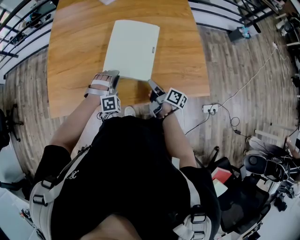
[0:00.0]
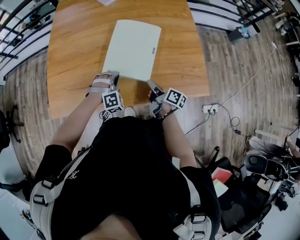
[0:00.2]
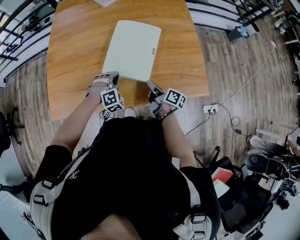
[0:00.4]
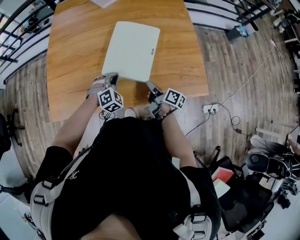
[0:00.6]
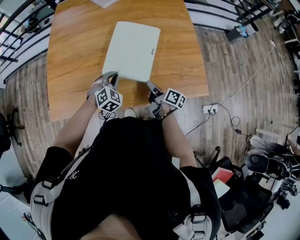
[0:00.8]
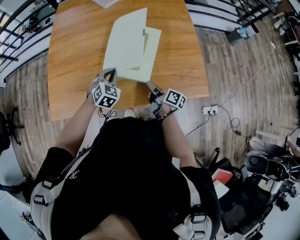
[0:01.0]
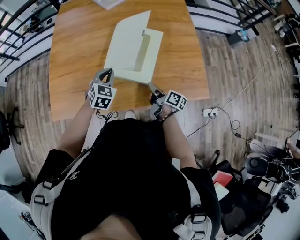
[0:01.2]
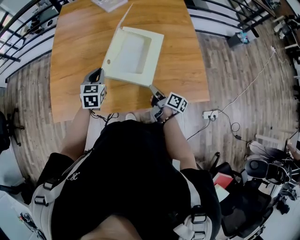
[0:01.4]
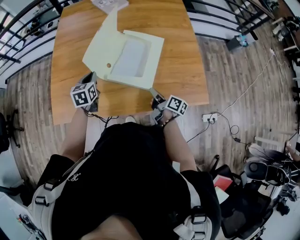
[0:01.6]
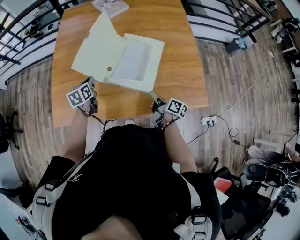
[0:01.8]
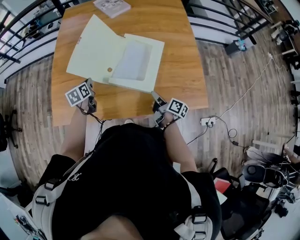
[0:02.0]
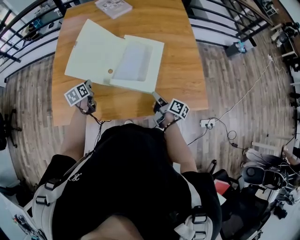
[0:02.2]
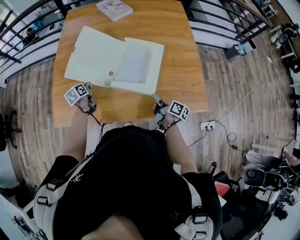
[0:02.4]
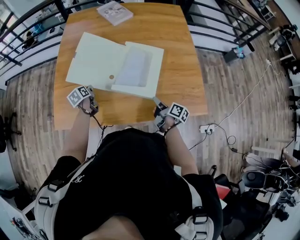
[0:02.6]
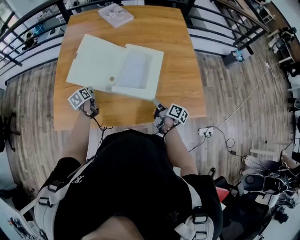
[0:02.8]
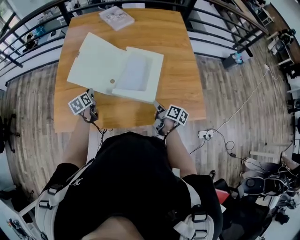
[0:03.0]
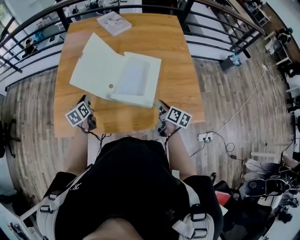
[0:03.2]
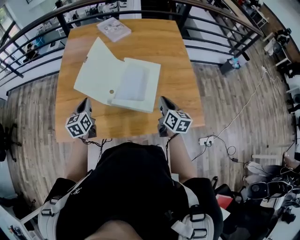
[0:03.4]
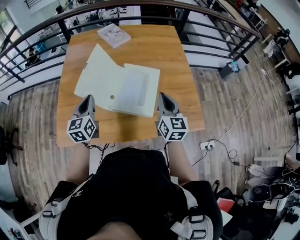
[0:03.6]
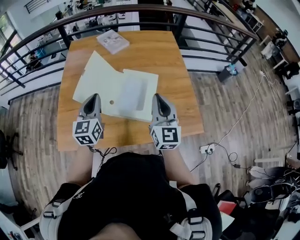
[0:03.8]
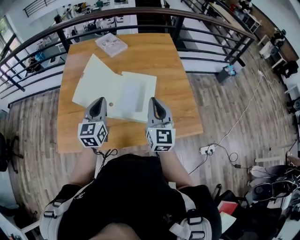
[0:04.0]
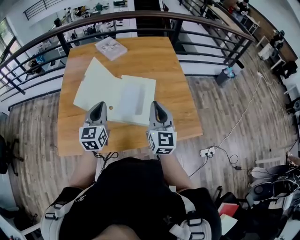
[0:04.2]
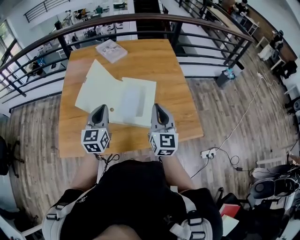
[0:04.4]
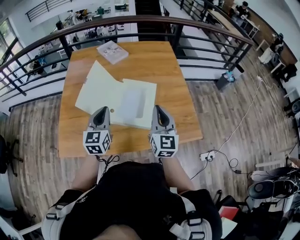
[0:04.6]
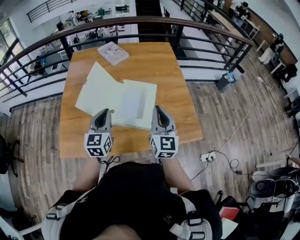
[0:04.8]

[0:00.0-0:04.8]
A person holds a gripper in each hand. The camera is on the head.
0:00.0 to 0:01.6: The left gripper shifts roughly 15 cm to the left, forward and upward, rotates around the line of its fingers by approximately 90 degrees, counterclockwise from behind, and closes up.
0:01.6 to 0:03.2: The left gripper travels to the left by roughly 10 cm, goes downward and returns, roughly 10 cm each way, and changes its angle by approximately 20 degrees, while the right gripper travels upward by approximately 5 cm, and turns by some 20 degrees.
0:03.2 to 0:04.8: The left gripper travels upward and to the right by some 25 cm, and changes its angle by approximately 40 degrees. Meanwhile the right gripper travels upward by roughly 25 cm, and rolls counterclockwise, seen from behind, by approximately 50 degrees.

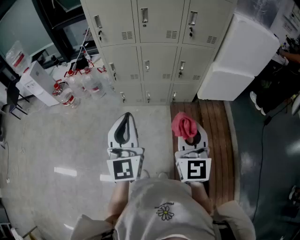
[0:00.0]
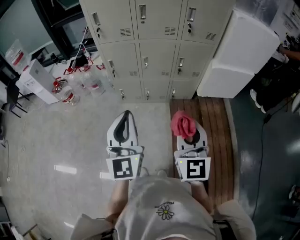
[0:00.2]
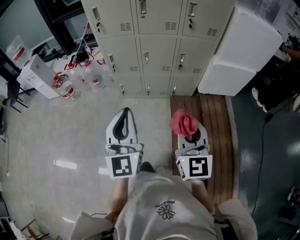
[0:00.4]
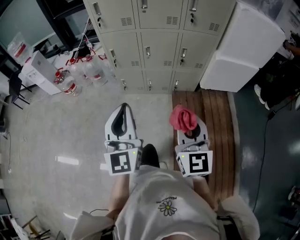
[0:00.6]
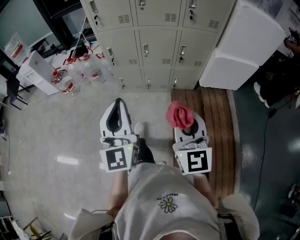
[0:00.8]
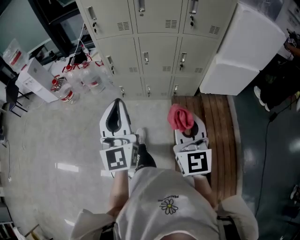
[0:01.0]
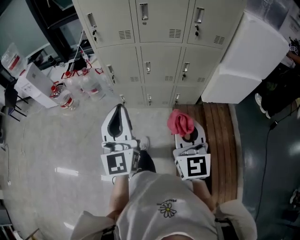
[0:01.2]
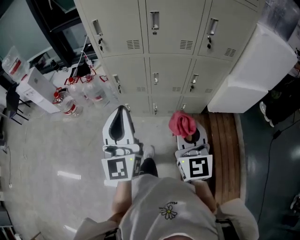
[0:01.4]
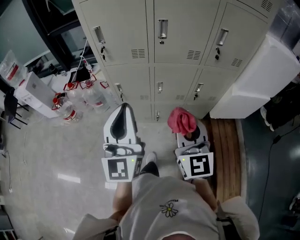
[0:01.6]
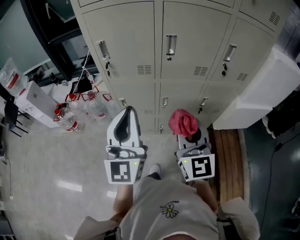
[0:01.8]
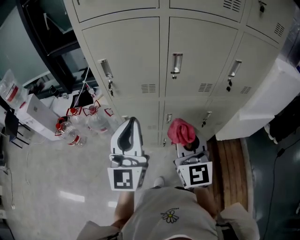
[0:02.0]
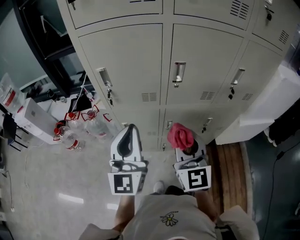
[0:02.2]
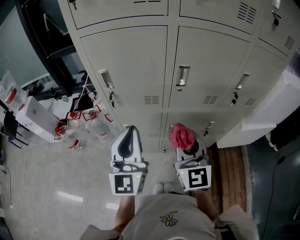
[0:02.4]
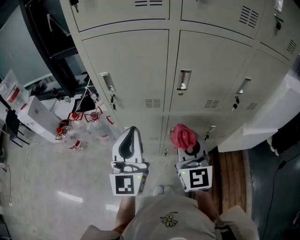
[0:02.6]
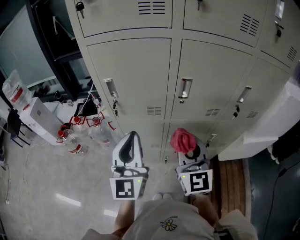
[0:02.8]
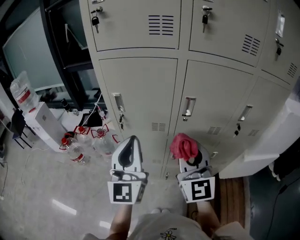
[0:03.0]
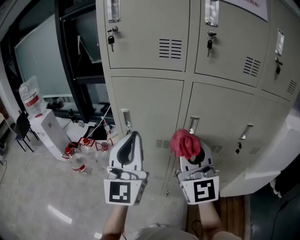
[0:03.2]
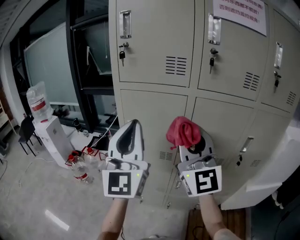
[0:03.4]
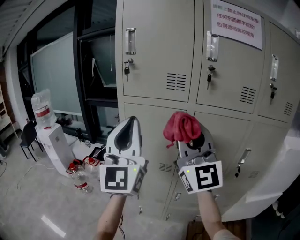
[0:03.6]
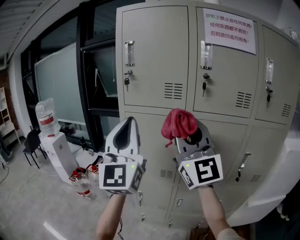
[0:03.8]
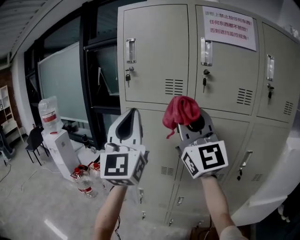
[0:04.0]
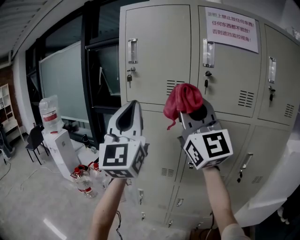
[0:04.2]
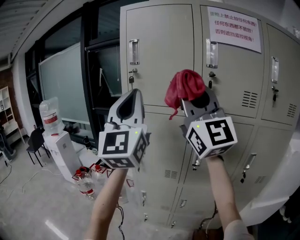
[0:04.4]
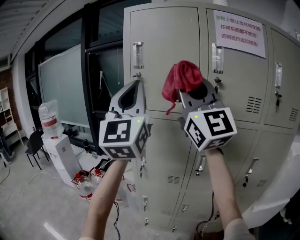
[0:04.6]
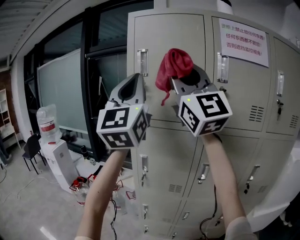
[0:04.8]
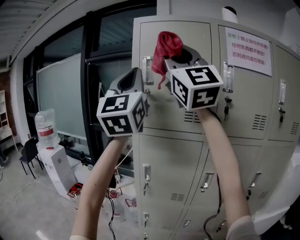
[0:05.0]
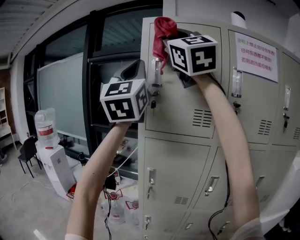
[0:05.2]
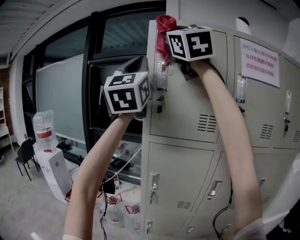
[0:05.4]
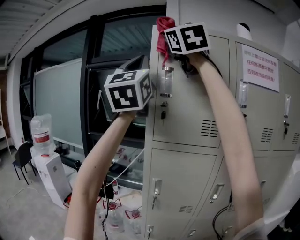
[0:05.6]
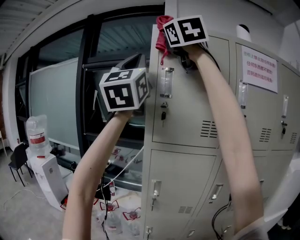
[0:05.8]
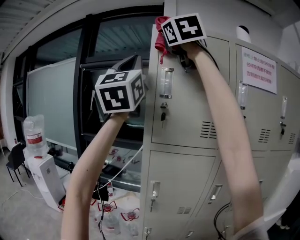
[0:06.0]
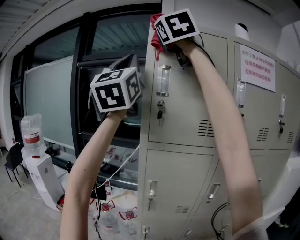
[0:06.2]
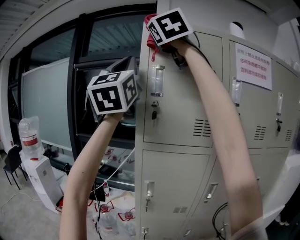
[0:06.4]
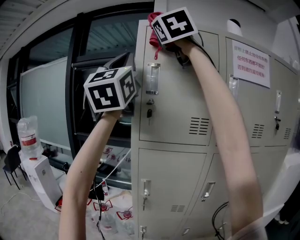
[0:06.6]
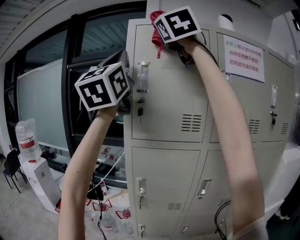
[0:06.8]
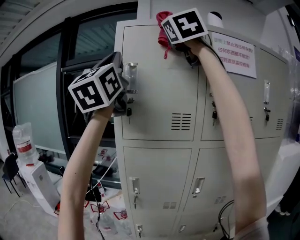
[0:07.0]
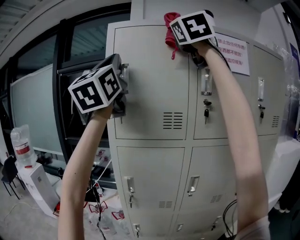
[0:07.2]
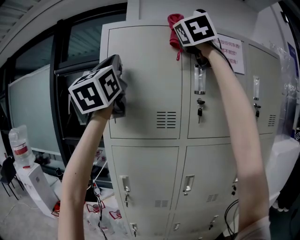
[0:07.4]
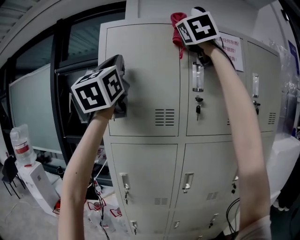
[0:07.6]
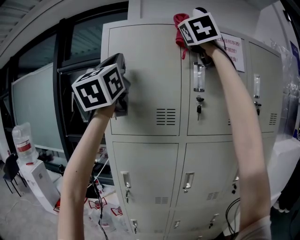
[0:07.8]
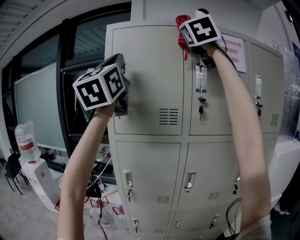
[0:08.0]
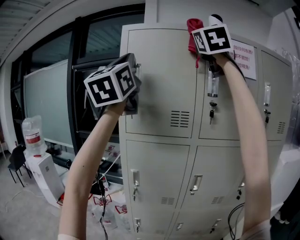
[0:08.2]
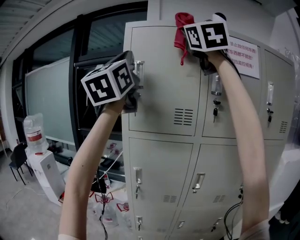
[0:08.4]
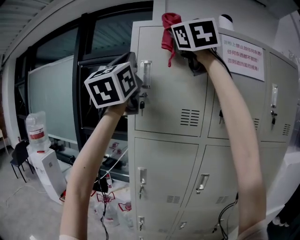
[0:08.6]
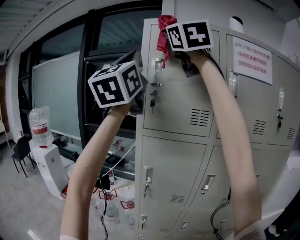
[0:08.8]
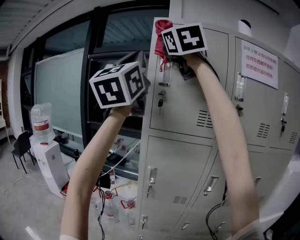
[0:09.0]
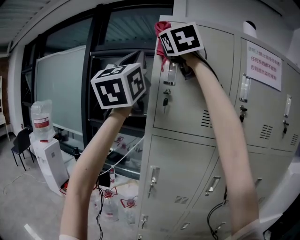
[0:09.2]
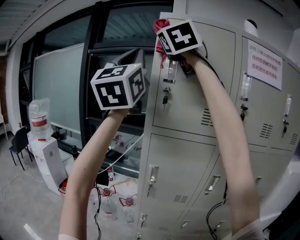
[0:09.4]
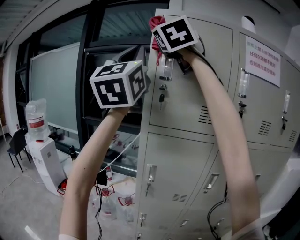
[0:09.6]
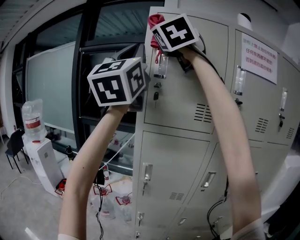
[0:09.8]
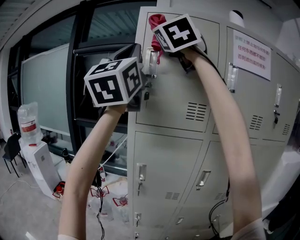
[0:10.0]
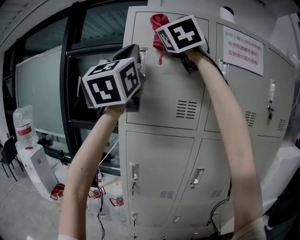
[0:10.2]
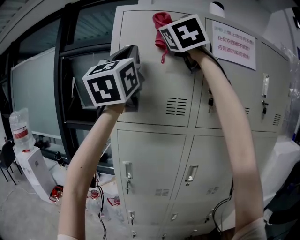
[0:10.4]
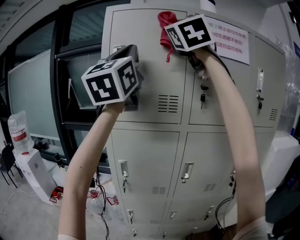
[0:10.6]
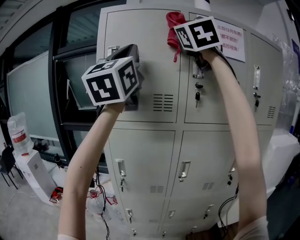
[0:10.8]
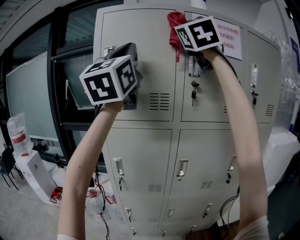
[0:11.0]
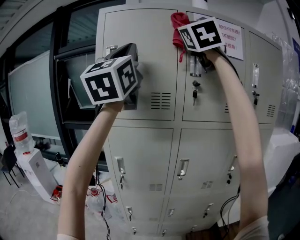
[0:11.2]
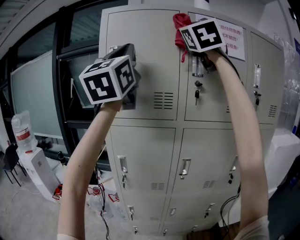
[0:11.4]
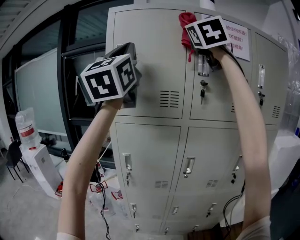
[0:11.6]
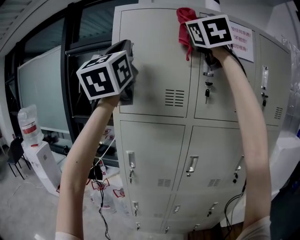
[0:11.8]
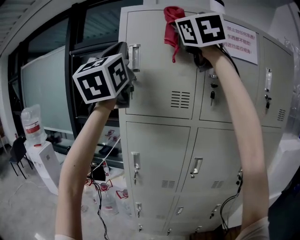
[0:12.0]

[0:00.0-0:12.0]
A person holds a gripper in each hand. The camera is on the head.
0:00.0 to 0:01.6: The two grippers go about 25 cm forward.
0:01.6 to 0:03.0: The right gripper moves forward and upward, approximately 25 cm. The left gripper is displaced forward by about 20 cm.
0:03.0 to 0:04.4: The grippers both shift upward by approximately 30 cm. The left gripper turns by about 20 degrees; the right gripper swivels approximately 40 degrees.
0:04.4 to 0:06.0: The grippers both shift upward, forward and to the left by roughly 35 cm. The right gripper swivels about 30 degrees.
0:06.0 to 0:07.6: The right gripper travels to the right by some 25 cm, while the left gripper goes some 10 cm to the right.
0:07.6 to 0:09.0: The right gripper travels to the left by roughly 25 cm, and swivels roughly 30 degrees. Meanwhile the left gripper is displaced to the left by some 10 cm.
0:09.0 to 0:10.4: Both grippers travel together to the right, roughly 10 cm.
0:10.4 to 0:12.0: The left gripper changes place by about 5 cm. The right gripper goes approximately 5 cm backward, and goes to the right and returns, some 10 cm each way.

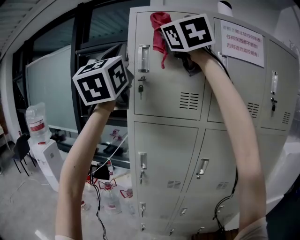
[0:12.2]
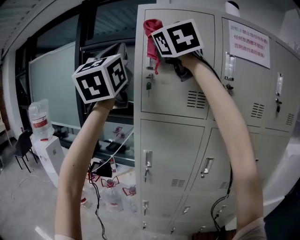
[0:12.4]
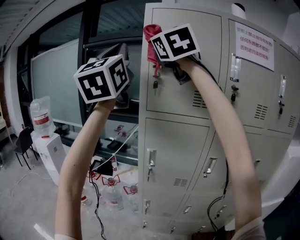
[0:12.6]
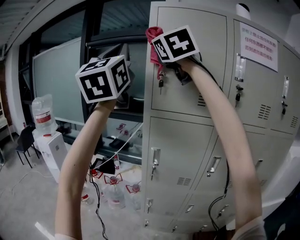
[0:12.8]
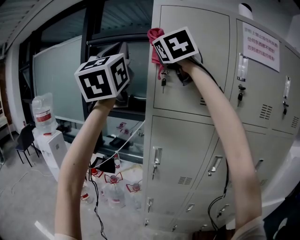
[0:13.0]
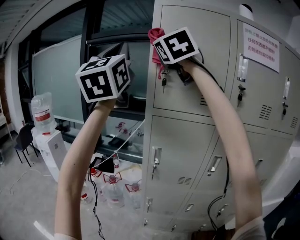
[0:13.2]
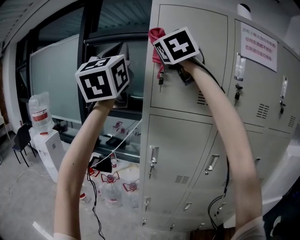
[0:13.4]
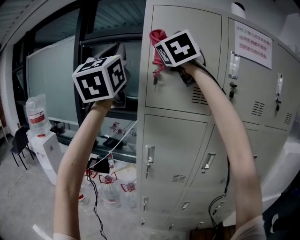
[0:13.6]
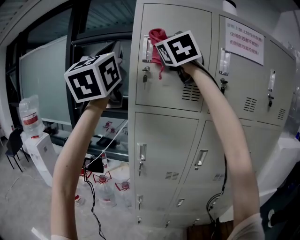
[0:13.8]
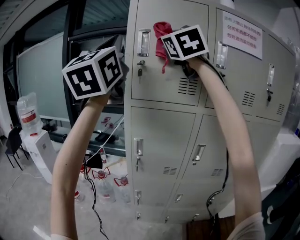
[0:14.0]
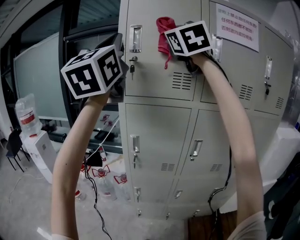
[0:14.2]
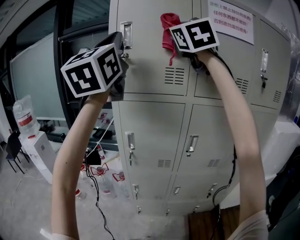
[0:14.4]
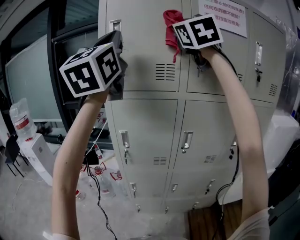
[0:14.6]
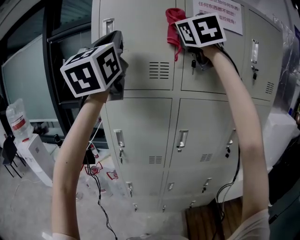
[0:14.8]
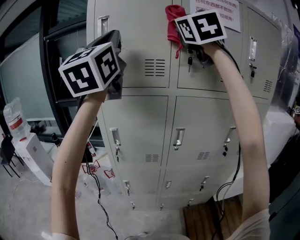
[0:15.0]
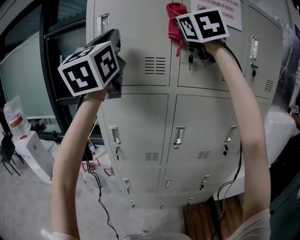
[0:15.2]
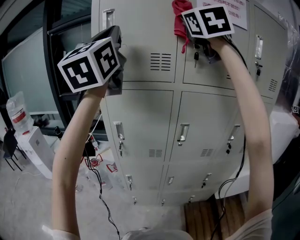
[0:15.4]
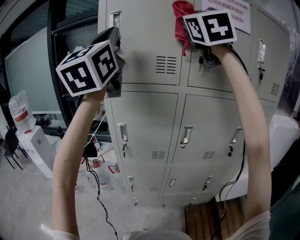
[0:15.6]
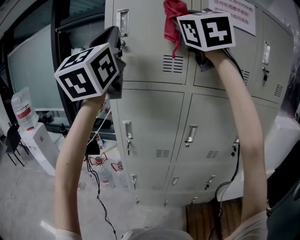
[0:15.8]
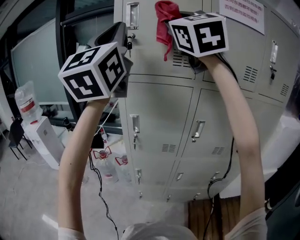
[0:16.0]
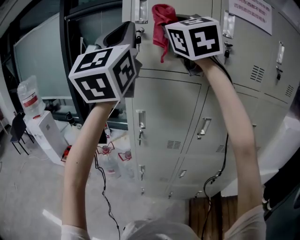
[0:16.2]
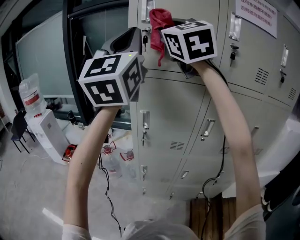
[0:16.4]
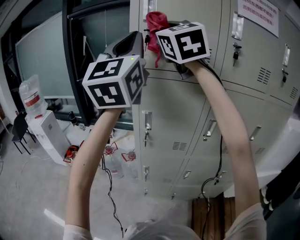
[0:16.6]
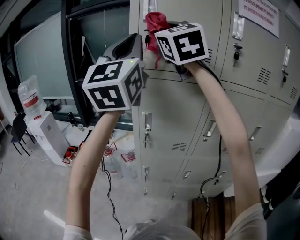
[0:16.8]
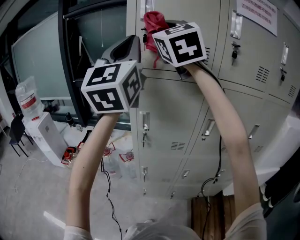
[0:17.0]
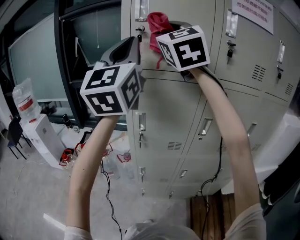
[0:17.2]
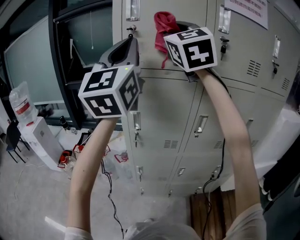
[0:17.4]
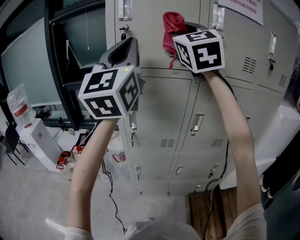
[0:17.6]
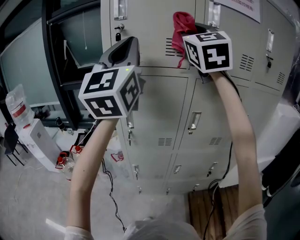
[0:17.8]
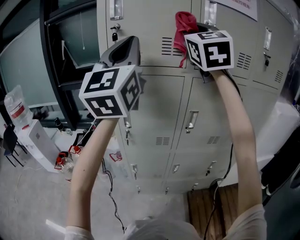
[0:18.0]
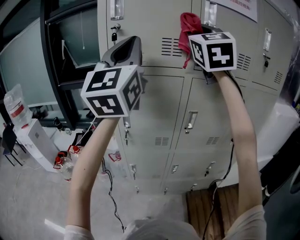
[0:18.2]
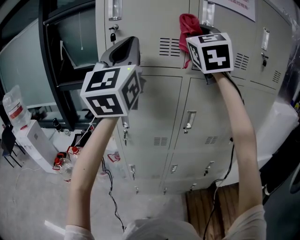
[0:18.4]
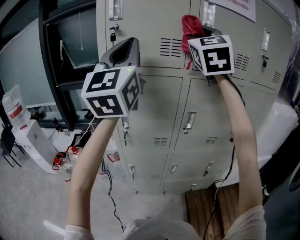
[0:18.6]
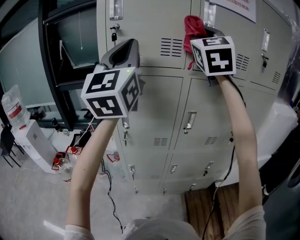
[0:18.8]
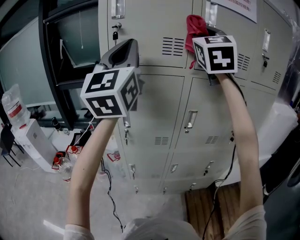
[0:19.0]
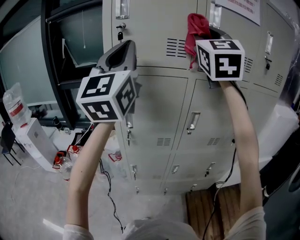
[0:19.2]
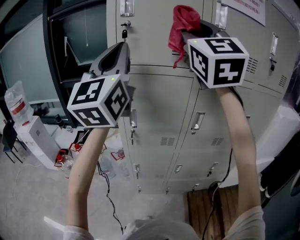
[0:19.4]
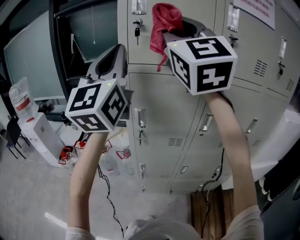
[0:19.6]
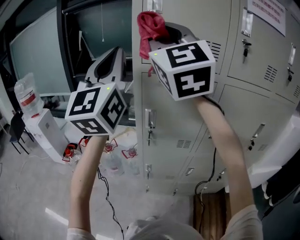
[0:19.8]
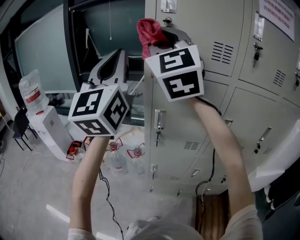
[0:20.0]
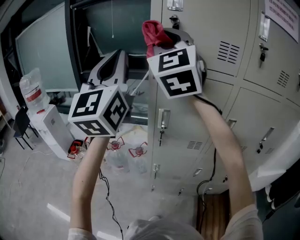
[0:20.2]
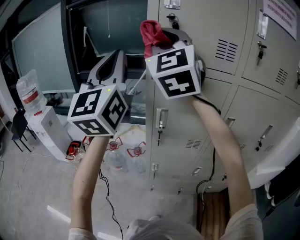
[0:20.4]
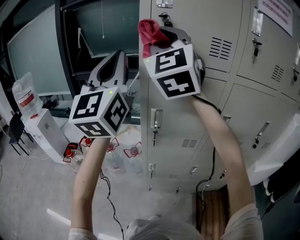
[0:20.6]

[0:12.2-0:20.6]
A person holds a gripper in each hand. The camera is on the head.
0:12.2 to 0:13.6: The left gripper shifts about 5 cm to the left; the right gripper heads downward and forward, covering about 10 cm.
0:13.6 to 0:15.0: The two grippers go approximately 20 cm to the right.
0:15.0 to 0:16.4: The right gripper heads to the left and downward, covering approximately 20 cm; the left gripper goes roughly 10 cm to the left and downward.
0:16.4 to 0:17.8: The left gripper shifts roughly 5 cm to the right. Meanwhile the right gripper moves to the right, some 15 cm.
0:17.8 to 0:19.2: The grippers move only a little.
0:19.2 to 0:20.6: The right gripper goes approximately 25 cm to the left; the left gripper moves to the left, roughly 15 cm.
